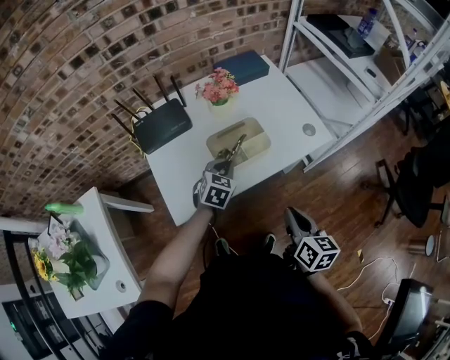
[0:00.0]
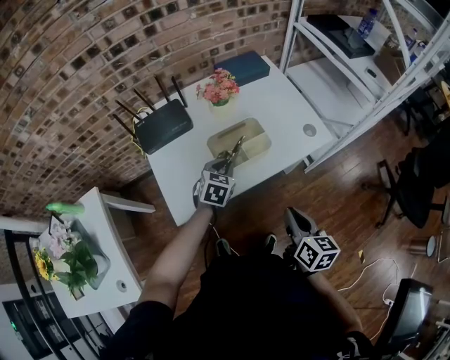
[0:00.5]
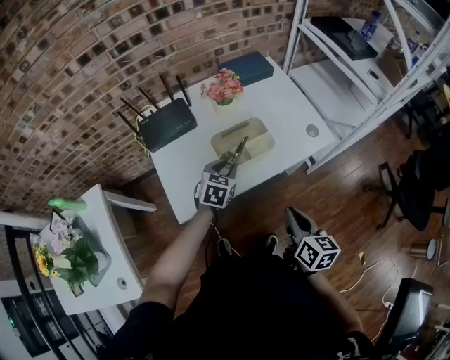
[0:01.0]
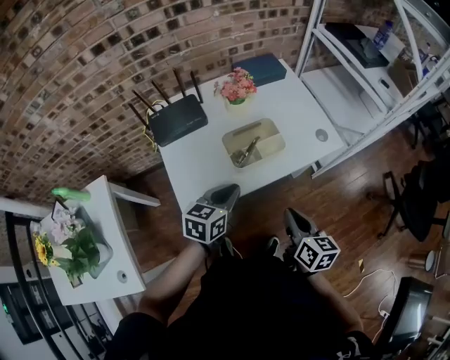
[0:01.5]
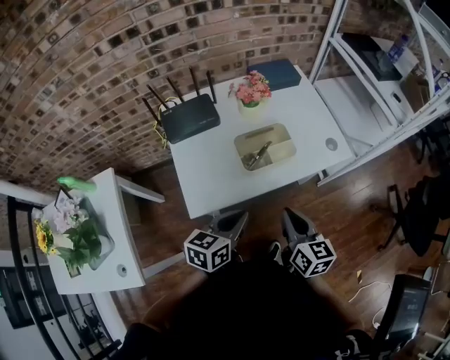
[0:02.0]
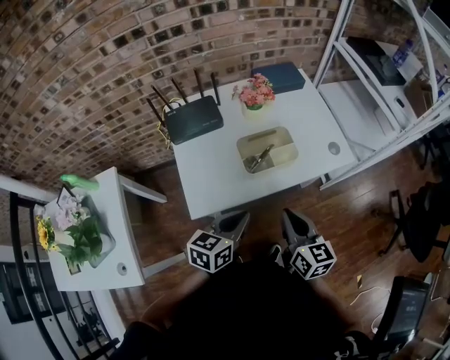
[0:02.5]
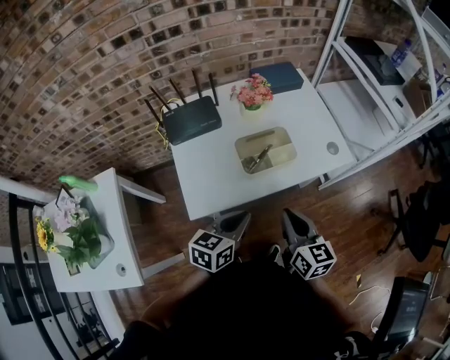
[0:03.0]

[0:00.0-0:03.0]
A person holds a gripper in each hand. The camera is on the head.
0:00.0 to 0:01.5: The left gripper is displaced backward and upward by roughly 15 cm, changes its angle by about 30 degrees, and opens, then closes again.
0:01.5 to 0:03.0: The left gripper travels backward by about 5 cm; the right gripper moves about 5 cm.

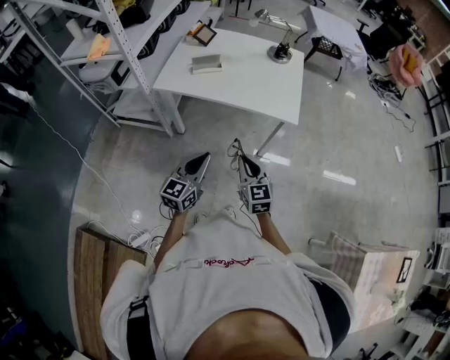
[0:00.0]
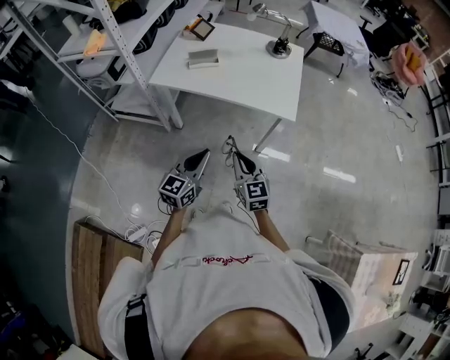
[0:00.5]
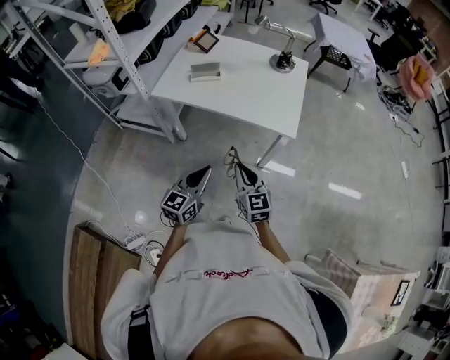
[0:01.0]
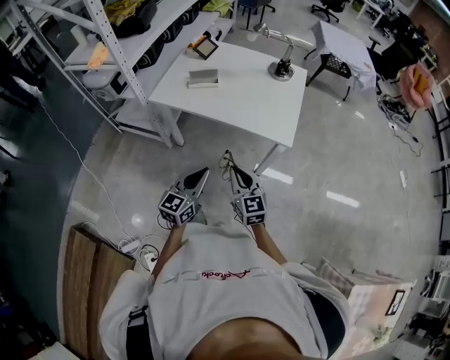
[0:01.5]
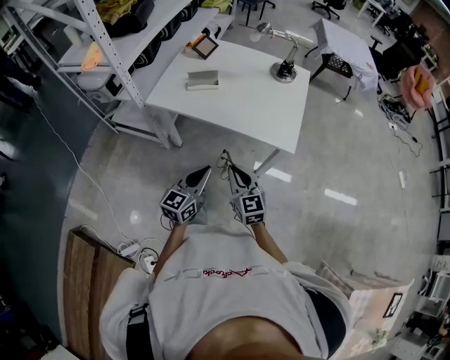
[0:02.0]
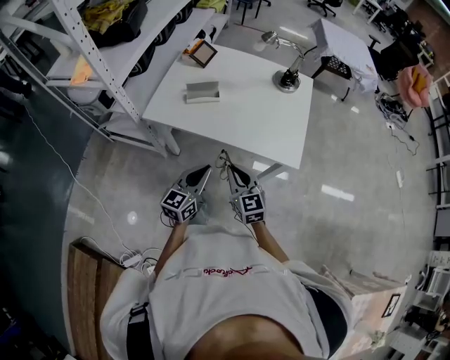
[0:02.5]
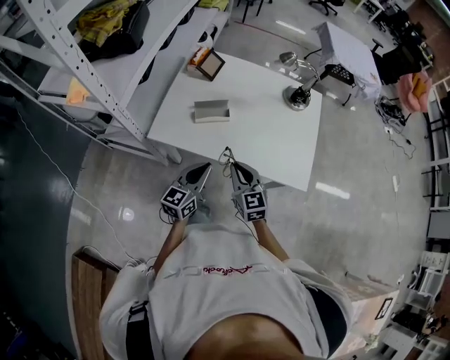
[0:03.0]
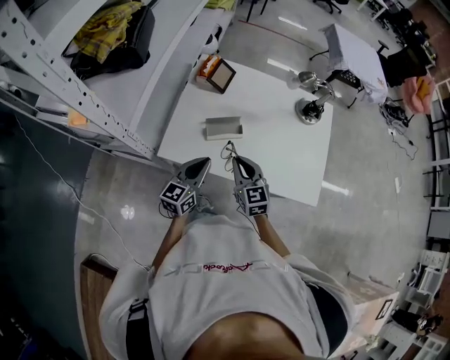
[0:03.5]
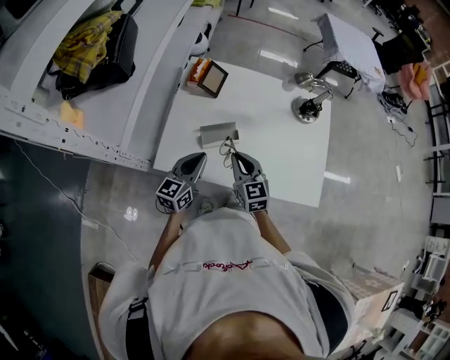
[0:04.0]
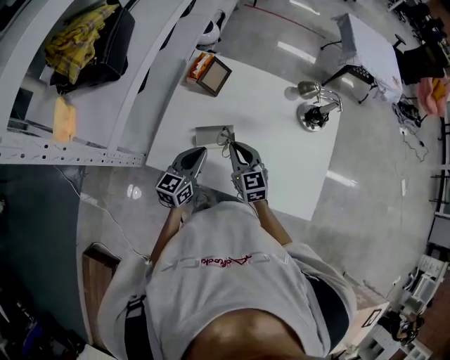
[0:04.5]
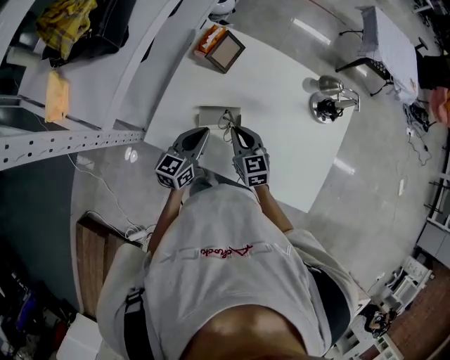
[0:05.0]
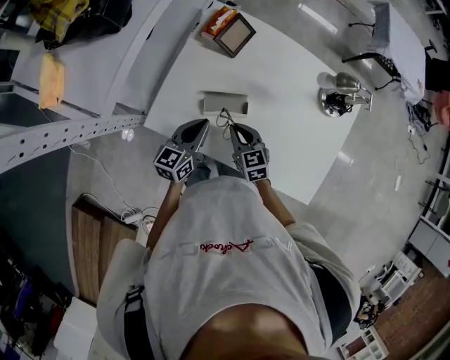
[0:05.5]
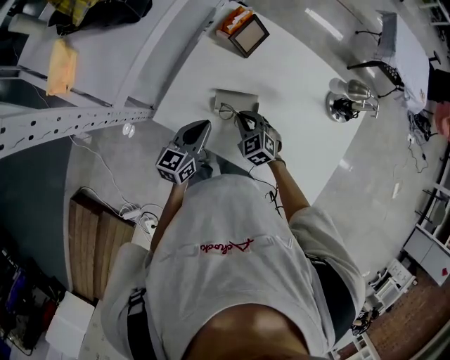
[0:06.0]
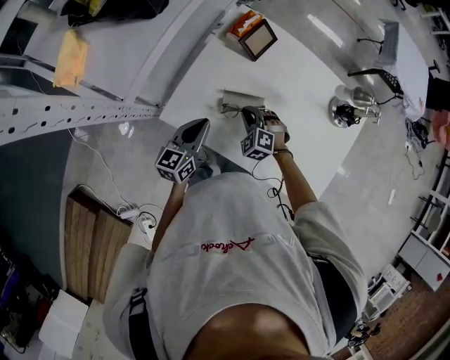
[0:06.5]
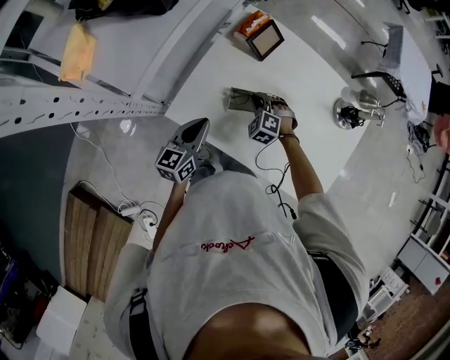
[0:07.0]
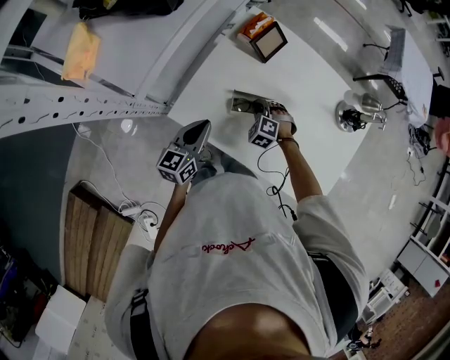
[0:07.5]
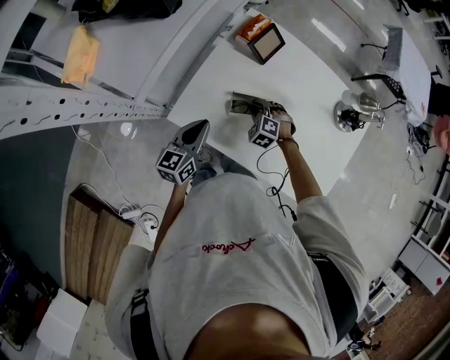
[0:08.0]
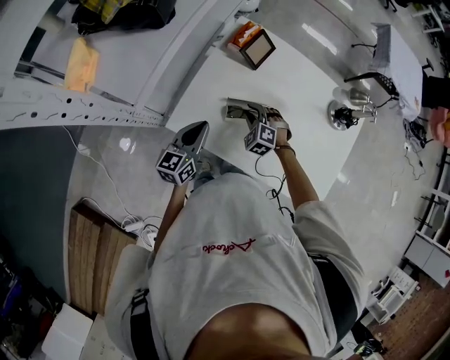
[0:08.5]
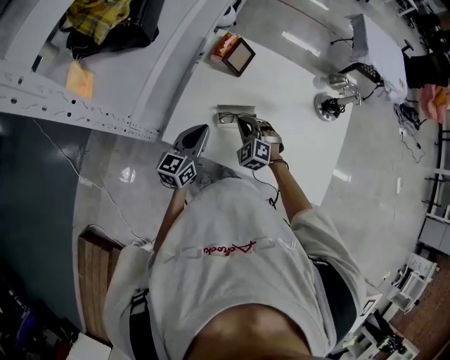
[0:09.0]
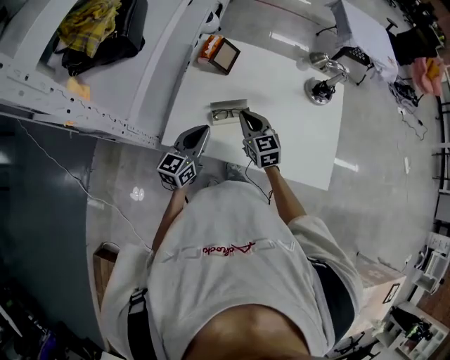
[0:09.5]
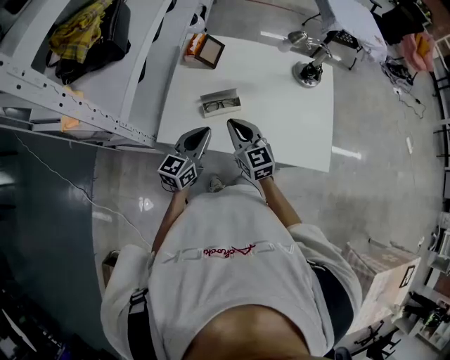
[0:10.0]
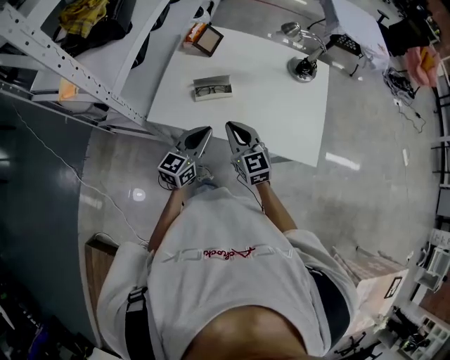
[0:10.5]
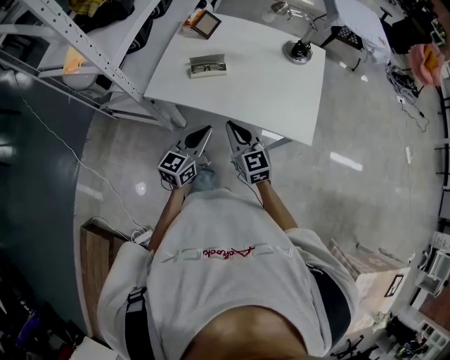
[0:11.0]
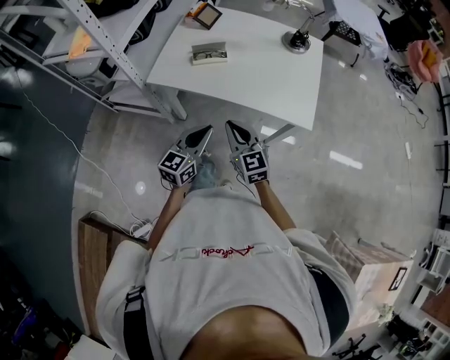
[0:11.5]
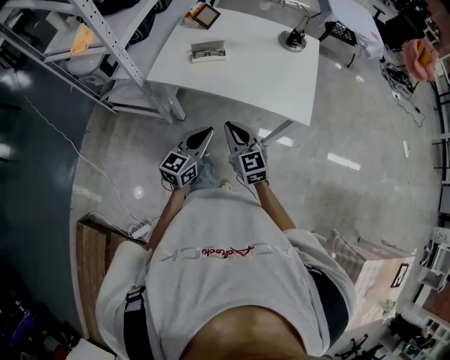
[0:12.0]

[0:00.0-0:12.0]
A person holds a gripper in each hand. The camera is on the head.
0:00.0 to 0:02.0: The left gripper travels forward and to the right by approximately 10 cm, while the right gripper is displaced forward by approximately 10 cm.
0:02.0 to 0:04.0: The two grippers go roughly 40 cm forward and to the left.
0:04.0 to 0:06.0: The right gripper goes roughly 15 cm downward and forward, and rotates roughly 50 degrees, while the left gripper heads downward, covering some 5 cm.
0:06.0 to 0:08.0: The left gripper moves to the left, roughly 5 cm. The right gripper moves downward, some 5 cm, and rotates about 30 degrees.
0:08.0 to 0:10.0: The right gripper is displaced upward and backward by about 25 cm, and points its fingers approximately 50 degrees further upward; the left gripper is displaced to the right, upward and backward by some 15 cm, and swivels approximately 30 degrees.
0:10.0 to 0:12.0: The right gripper goes roughly 30 cm backward; the left gripper moves backward and to the right, about 30 cm.

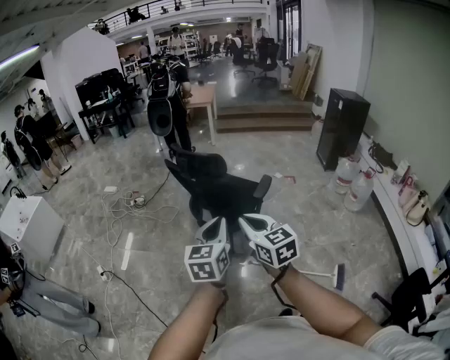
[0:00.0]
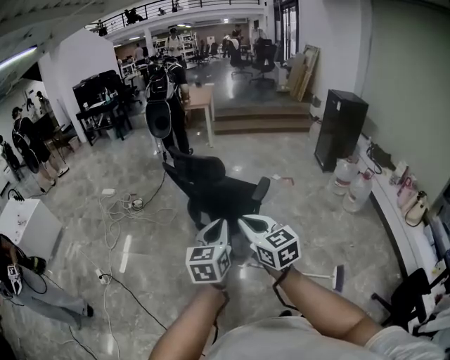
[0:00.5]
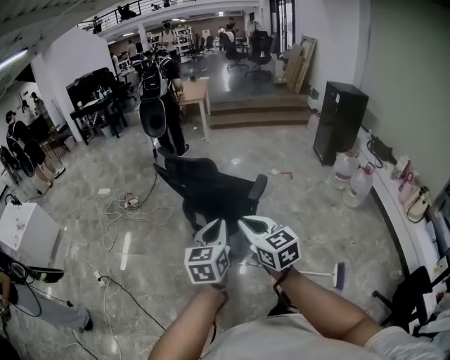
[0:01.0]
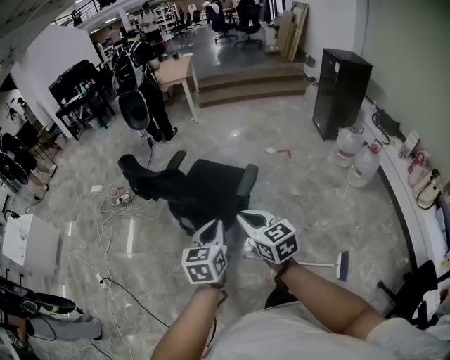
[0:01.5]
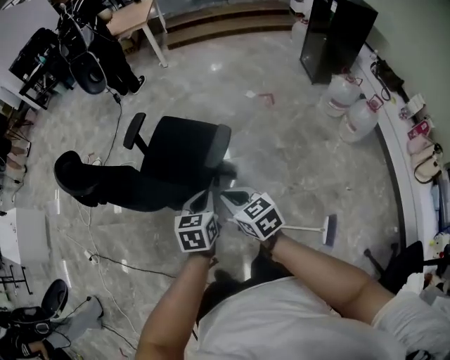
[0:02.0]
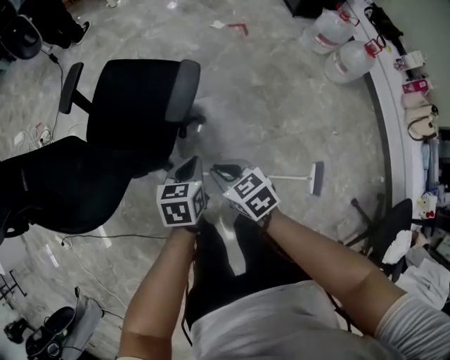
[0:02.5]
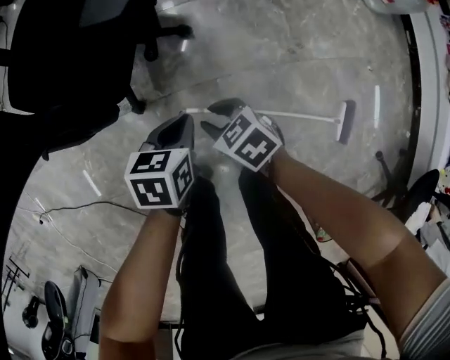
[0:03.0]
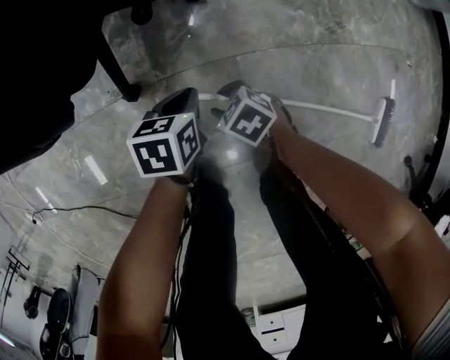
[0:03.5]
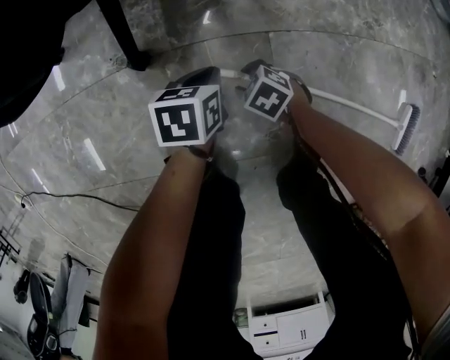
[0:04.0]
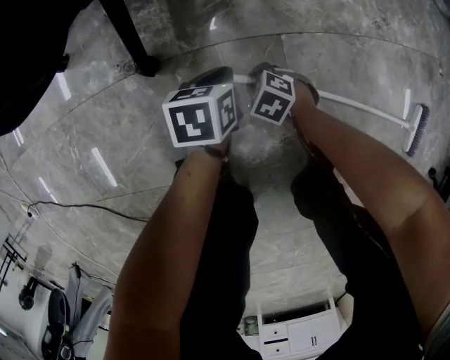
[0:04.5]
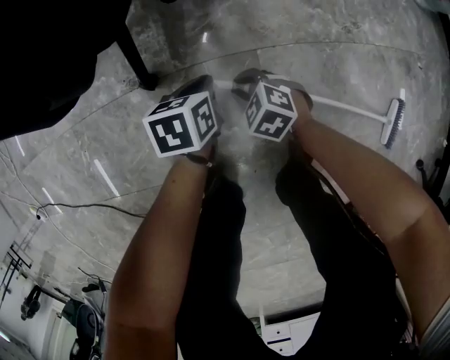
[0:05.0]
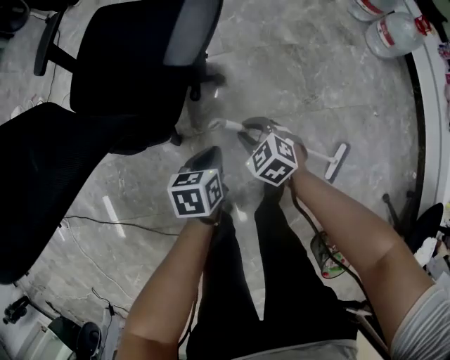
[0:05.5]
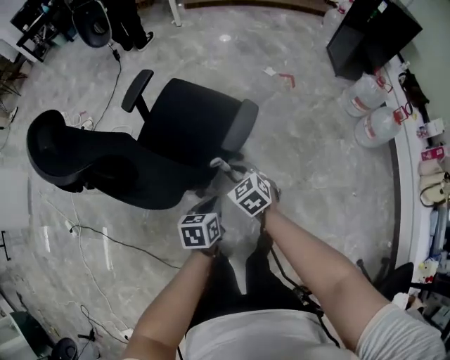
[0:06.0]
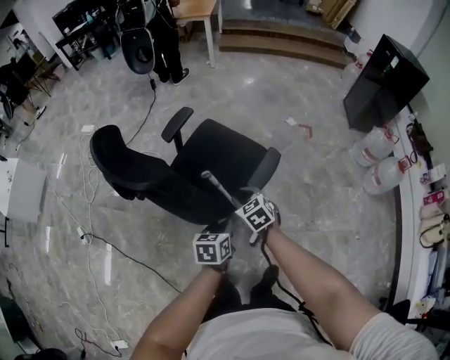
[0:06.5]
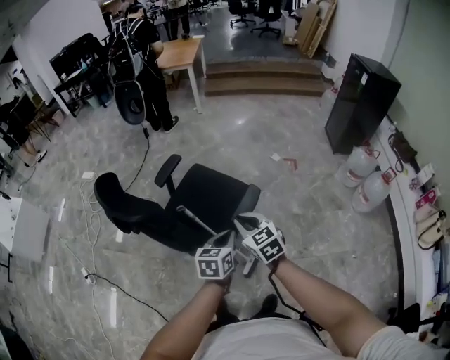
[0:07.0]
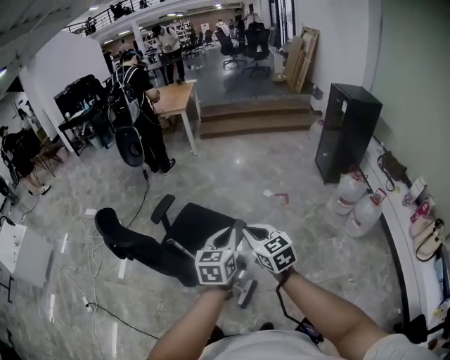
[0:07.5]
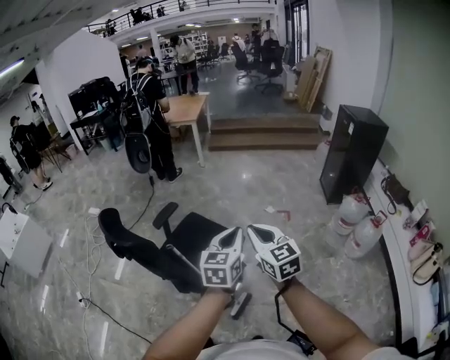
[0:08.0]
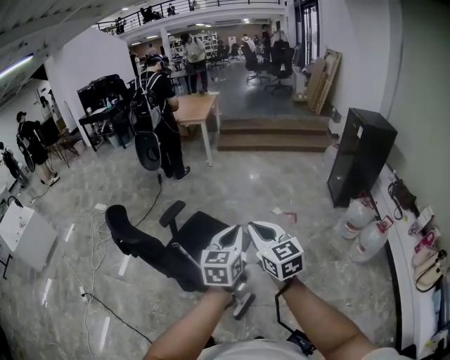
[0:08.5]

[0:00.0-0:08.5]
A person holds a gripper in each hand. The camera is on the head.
0:00.0 to 0:02.0: The pair of grippers is taken forward and to the right, approximately 50 cm. Both grippers travel together downward, approximately 25 cm. The right gripper changes its angle by some 20 degrees; the left gripper turns by approximately 30 degrees.
0:02.0 to 0:04.0: The two grippers go approximately 1 m downward. The right gripper points its fingers about 40 degrees further downward, and opens its fingers, while the left gripper turns by some 40 degrees.
0:04.0 to 0:06.5: The two grippers go some 90 cm upward. The left gripper swivels some 20 degrees. The right gripper rotates about 30 degrees.
0:06.5 to 0:08.5: The grippers both shift upward and to the right by approximately 40 cm. The right gripper angles its fingers upward, by some 40 degrees, and closes; the left gripper points its fingers some 30 degrees further upward.

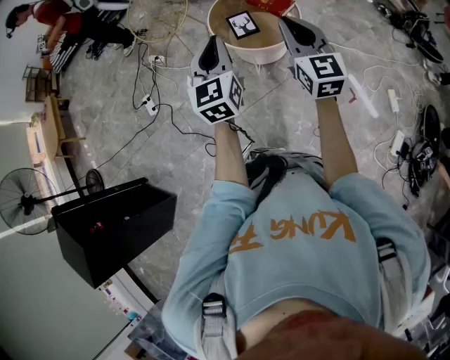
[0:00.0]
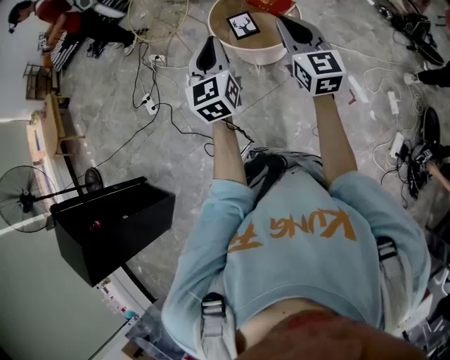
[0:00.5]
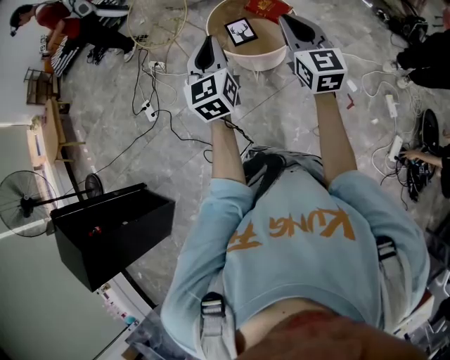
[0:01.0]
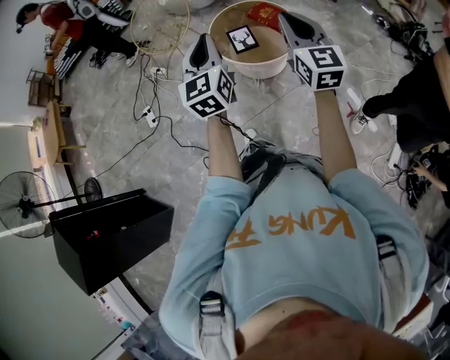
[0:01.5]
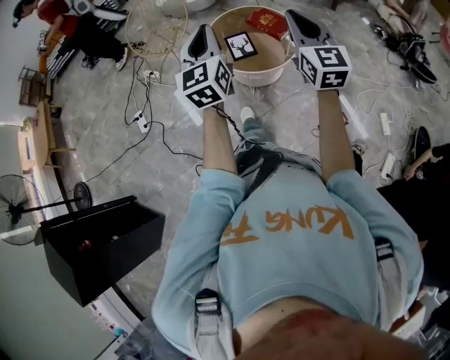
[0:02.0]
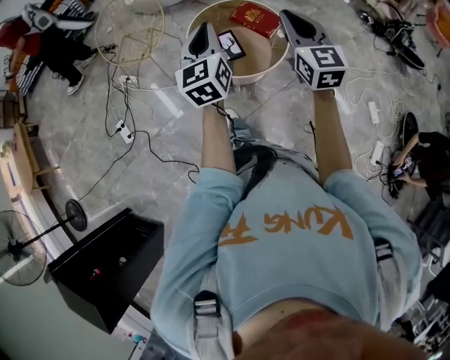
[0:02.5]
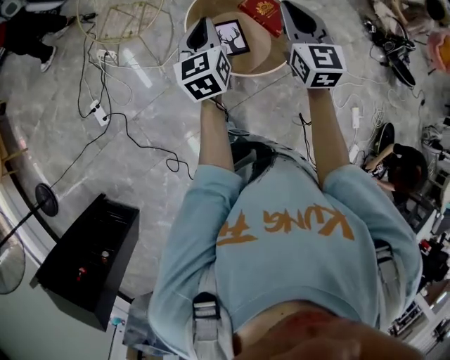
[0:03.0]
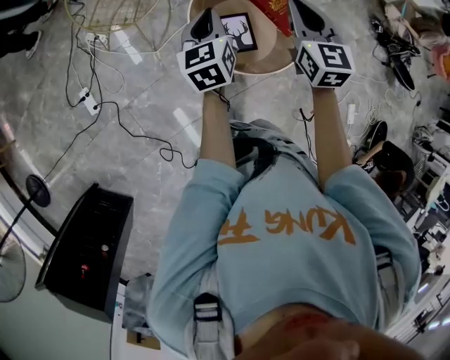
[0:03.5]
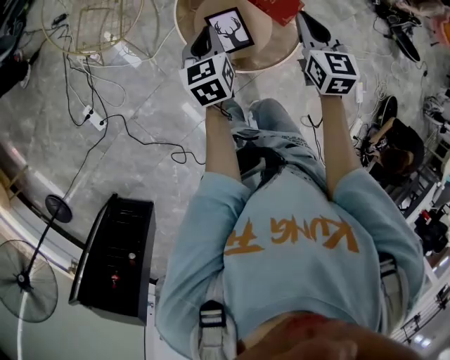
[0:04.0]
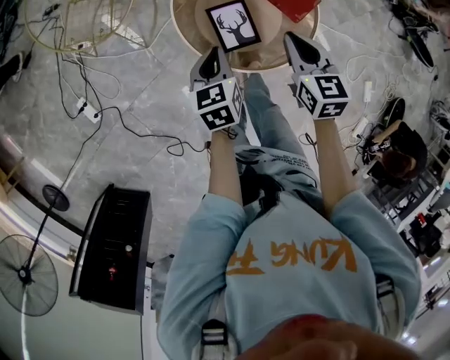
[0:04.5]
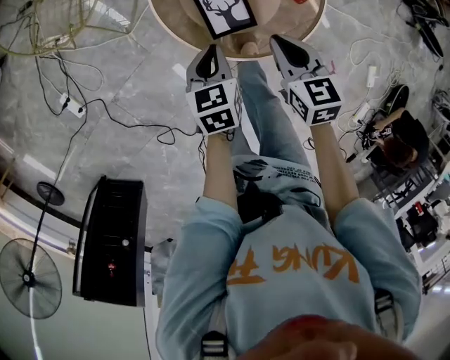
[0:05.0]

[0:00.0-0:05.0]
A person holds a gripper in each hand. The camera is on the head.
0:00.0 to 0:02.5: The two grippers go some 25 cm forward.
0:02.5 to 0:05.0: The two grippers go roughly 50 cm downward and forward. The left gripper tips its fingers downward by approximately 40 degrees, while the right gripper angles its fingers downward, by approximately 40 degrees.
